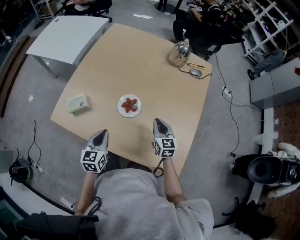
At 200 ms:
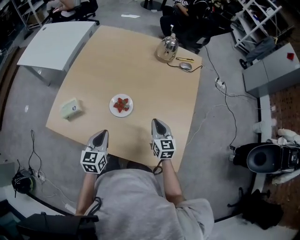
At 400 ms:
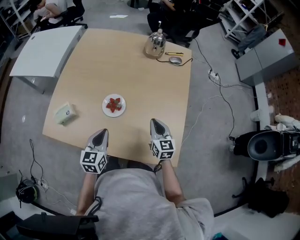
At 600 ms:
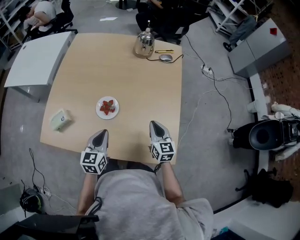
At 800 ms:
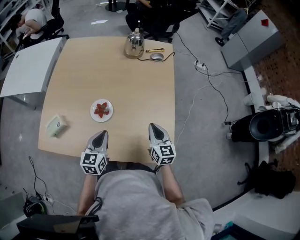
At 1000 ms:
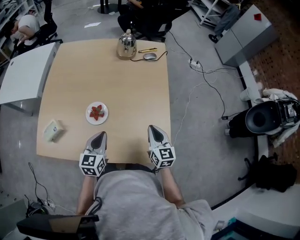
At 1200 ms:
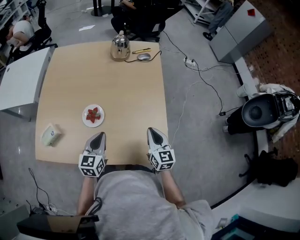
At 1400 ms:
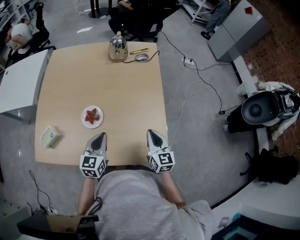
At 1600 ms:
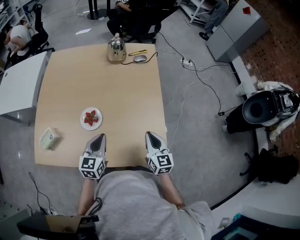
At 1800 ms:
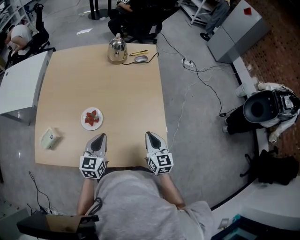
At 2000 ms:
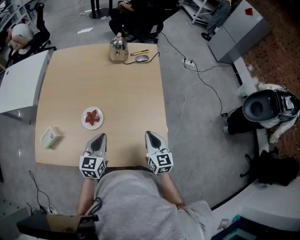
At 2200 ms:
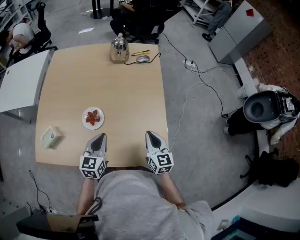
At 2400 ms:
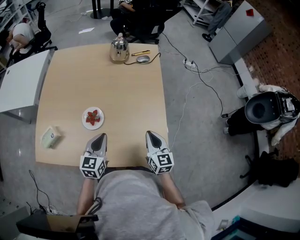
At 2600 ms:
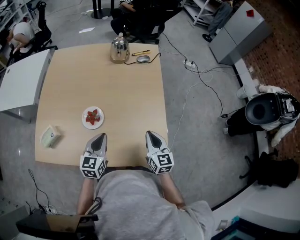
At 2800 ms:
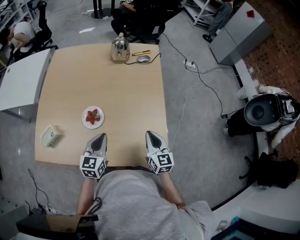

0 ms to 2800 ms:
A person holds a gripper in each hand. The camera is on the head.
0 ms to 1400 ms: The right gripper moves to the right and backward, some 20 cm, and rotates approximately 20 degrees. Meanwhile the left gripper goes roughly 15 cm to the right, and rotates some 30 degrees.
1400 ms to 2800 ms: Neither gripper changes place.

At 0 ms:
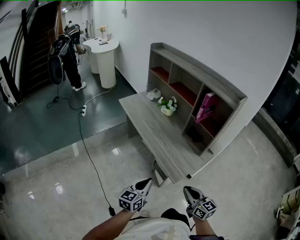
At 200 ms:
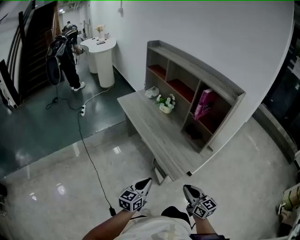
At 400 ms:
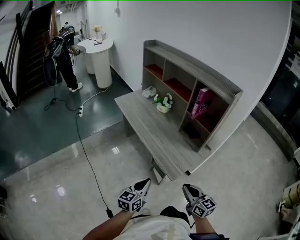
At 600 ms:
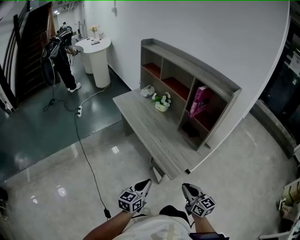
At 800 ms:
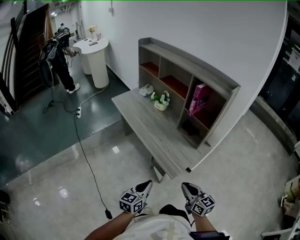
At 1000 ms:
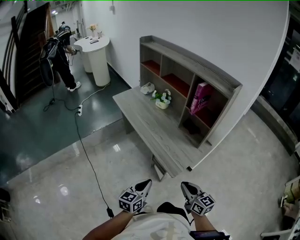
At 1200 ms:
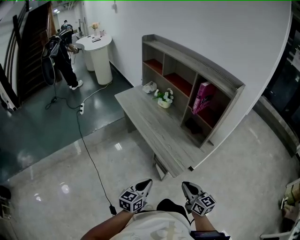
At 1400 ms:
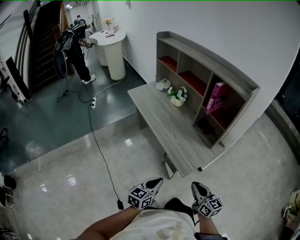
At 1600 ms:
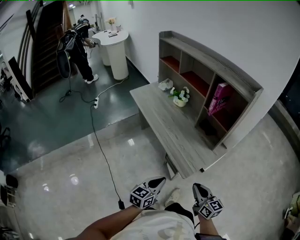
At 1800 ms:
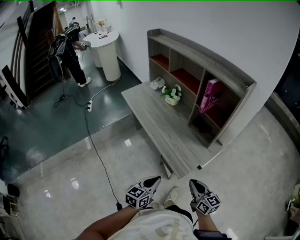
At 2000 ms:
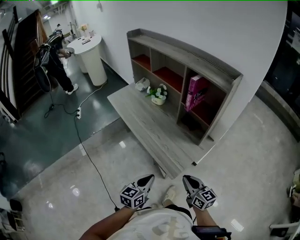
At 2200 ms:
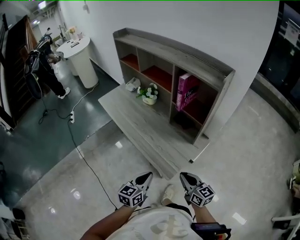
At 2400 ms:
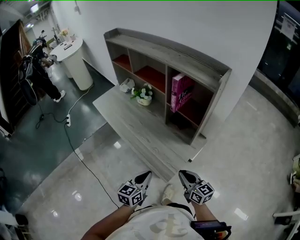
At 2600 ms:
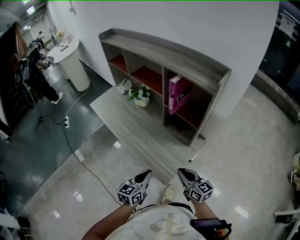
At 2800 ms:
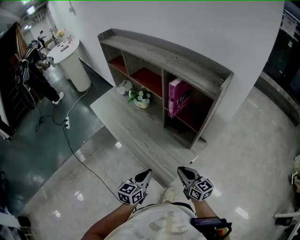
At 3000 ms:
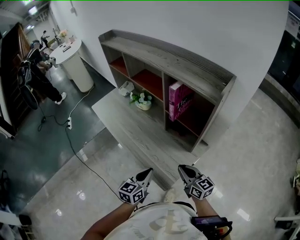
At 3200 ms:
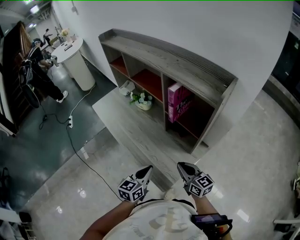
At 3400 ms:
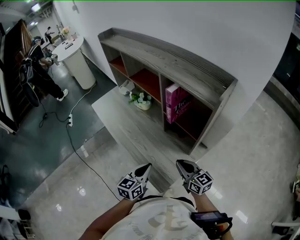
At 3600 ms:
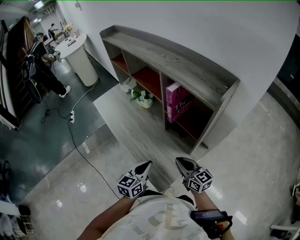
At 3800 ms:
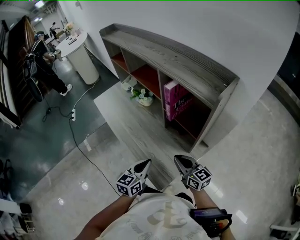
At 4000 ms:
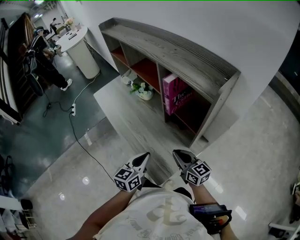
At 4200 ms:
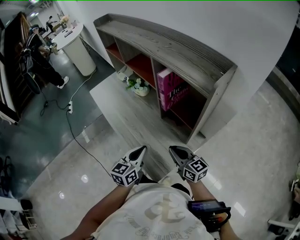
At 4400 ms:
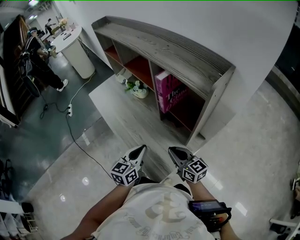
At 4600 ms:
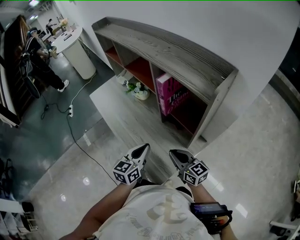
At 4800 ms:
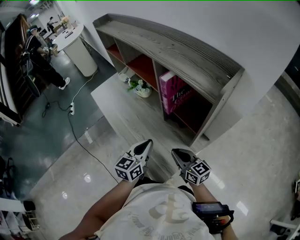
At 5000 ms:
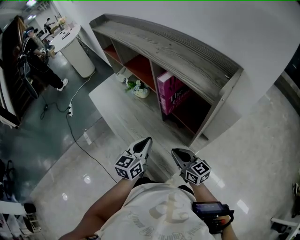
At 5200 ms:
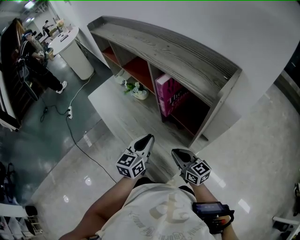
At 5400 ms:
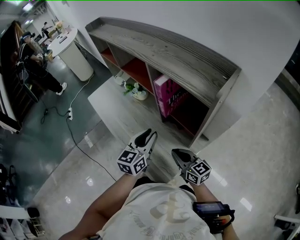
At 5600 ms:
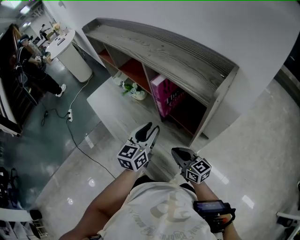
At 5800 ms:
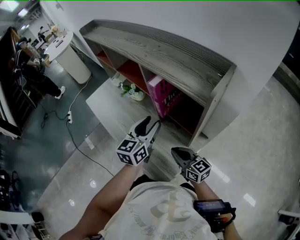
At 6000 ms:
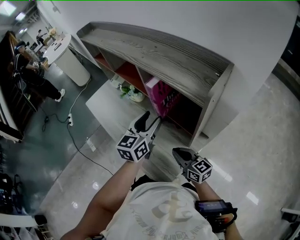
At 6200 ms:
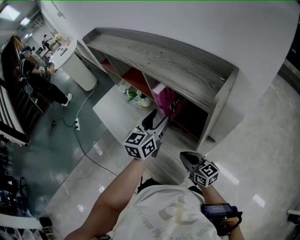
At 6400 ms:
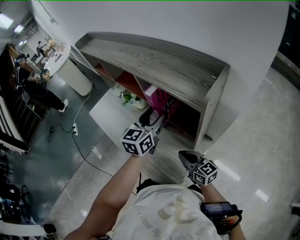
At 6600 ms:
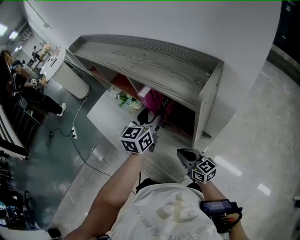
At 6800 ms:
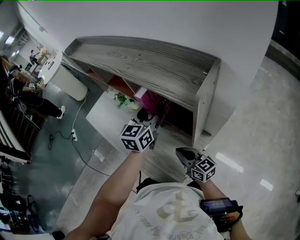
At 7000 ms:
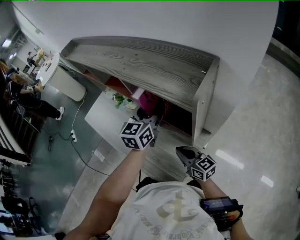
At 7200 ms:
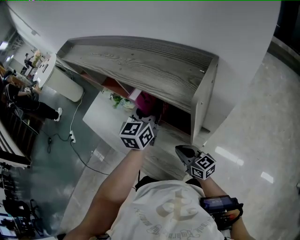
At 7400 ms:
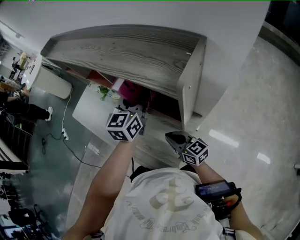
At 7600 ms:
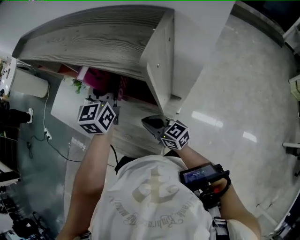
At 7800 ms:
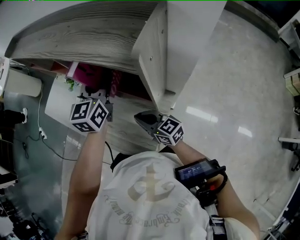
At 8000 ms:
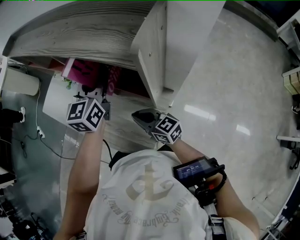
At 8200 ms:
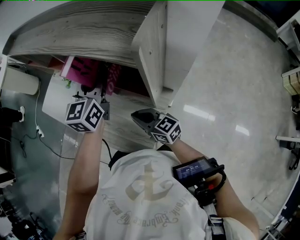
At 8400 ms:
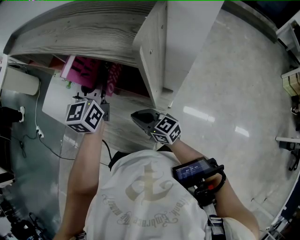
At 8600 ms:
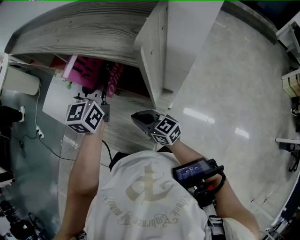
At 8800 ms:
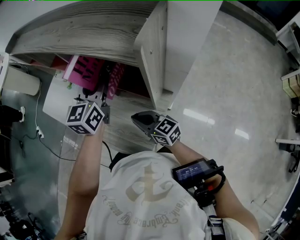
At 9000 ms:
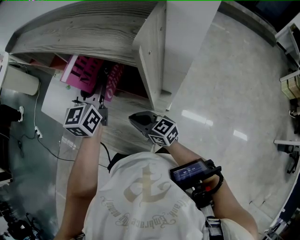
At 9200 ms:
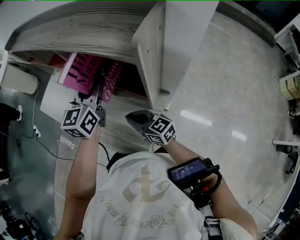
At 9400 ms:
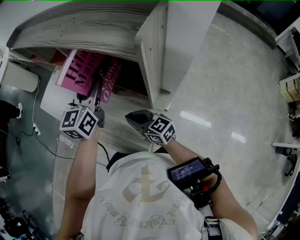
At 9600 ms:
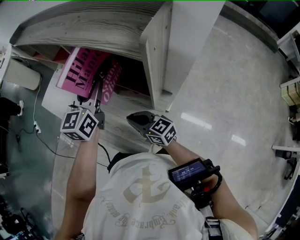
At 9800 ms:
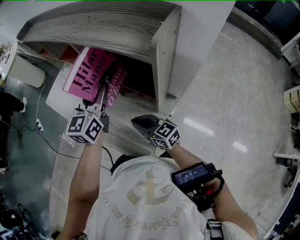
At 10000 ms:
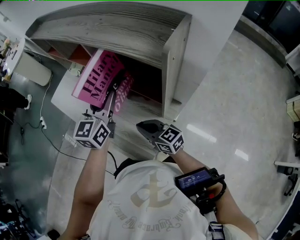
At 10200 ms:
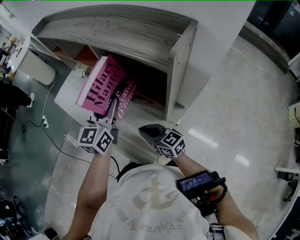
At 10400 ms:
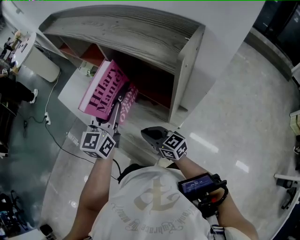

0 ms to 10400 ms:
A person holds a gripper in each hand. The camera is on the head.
0 ms to 1400 ms: The left gripper moves roughly 5 cm.
1400 ms to 3000 ms: The right gripper goes some 25 cm forward. Meanwhile the left gripper is displaced forward and to the right by about 25 cm.
3000 ms to 4400 ms: The grippers both shift forward by approximately 5 cm.
4400 ms to 6000 ms: The left gripper is displaced forward, upward and to the right by roughly 20 cm, and opens its fingers.
6000 ms to 7400 ms: The left gripper goes some 10 cm forward and to the right.
7400 ms to 9000 ms: The grippers make only small movements.
9000 ms to 10400 ms: The left gripper moves to the left and backward, some 10 cm.

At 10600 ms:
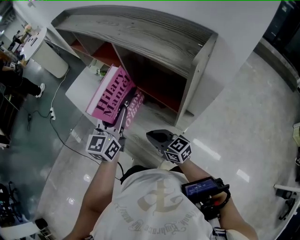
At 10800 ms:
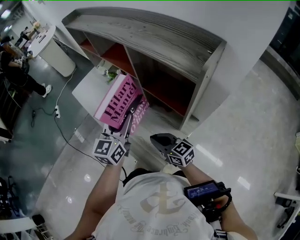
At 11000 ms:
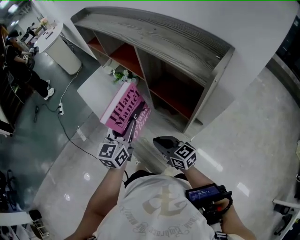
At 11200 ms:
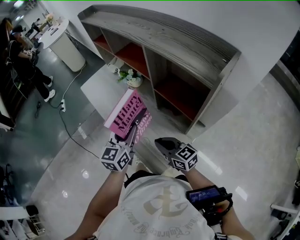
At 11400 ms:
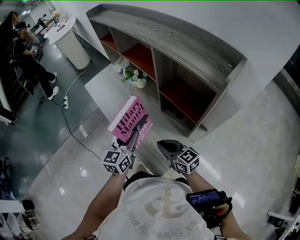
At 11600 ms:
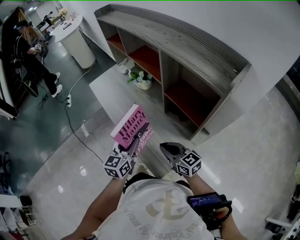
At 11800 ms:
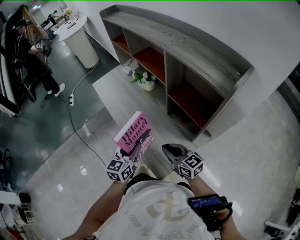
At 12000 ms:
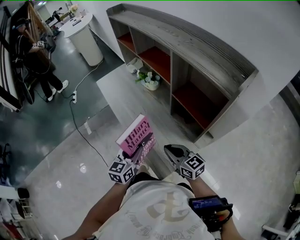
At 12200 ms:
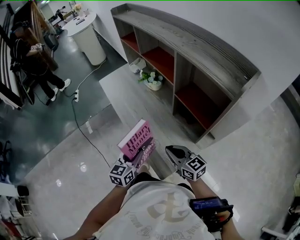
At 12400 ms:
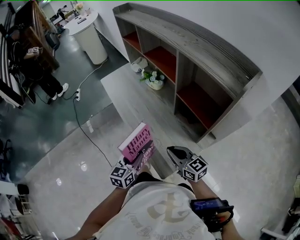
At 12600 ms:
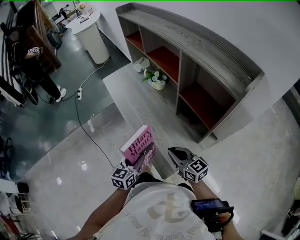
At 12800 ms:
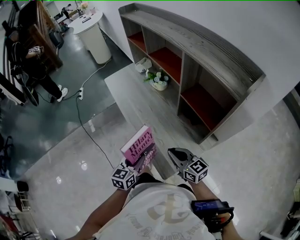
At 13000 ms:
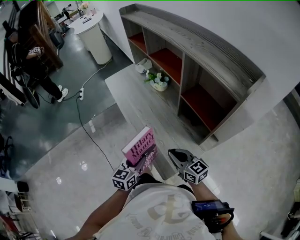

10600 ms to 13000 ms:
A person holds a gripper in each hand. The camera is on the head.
10600 ms to 11800 ms: The left gripper heads downward, to the left and backward, covering about 20 cm.
11800 ms to 13000 ms: The left gripper moves backward, approximately 5 cm.

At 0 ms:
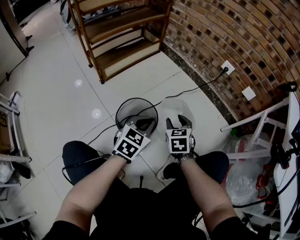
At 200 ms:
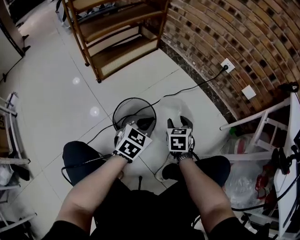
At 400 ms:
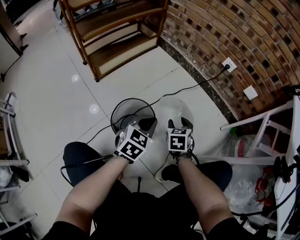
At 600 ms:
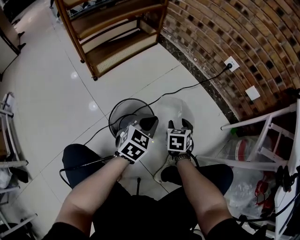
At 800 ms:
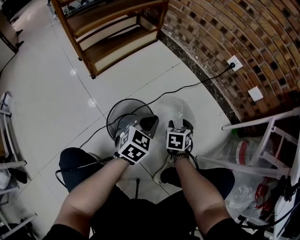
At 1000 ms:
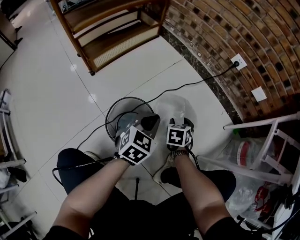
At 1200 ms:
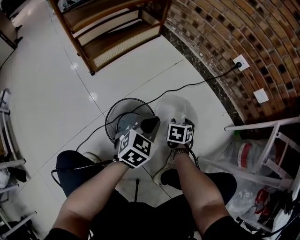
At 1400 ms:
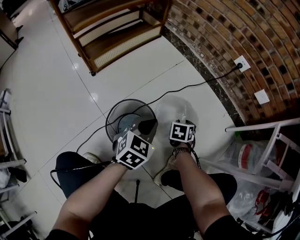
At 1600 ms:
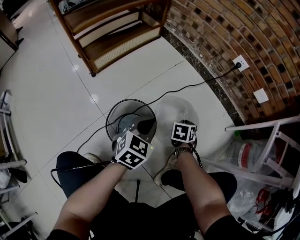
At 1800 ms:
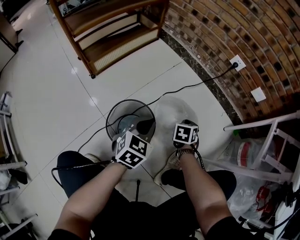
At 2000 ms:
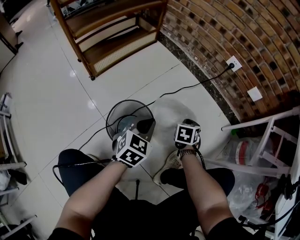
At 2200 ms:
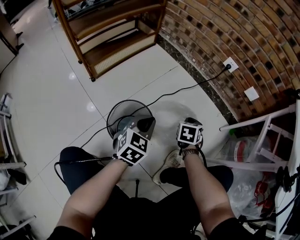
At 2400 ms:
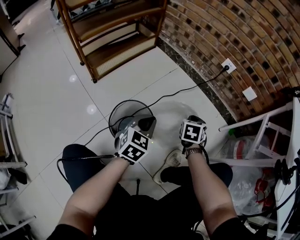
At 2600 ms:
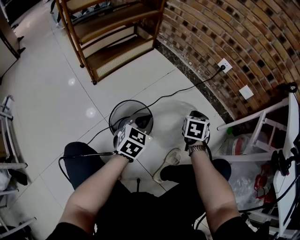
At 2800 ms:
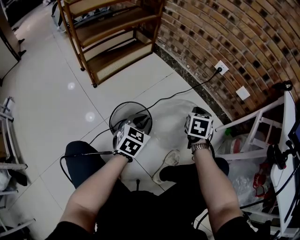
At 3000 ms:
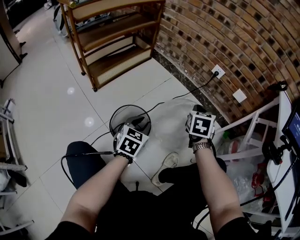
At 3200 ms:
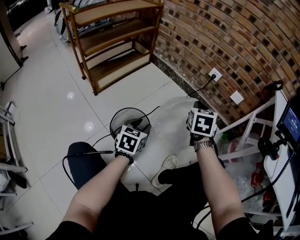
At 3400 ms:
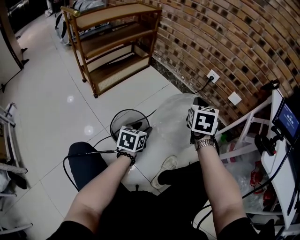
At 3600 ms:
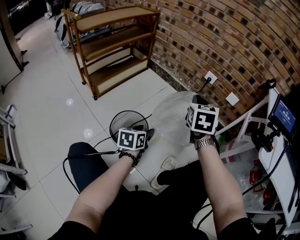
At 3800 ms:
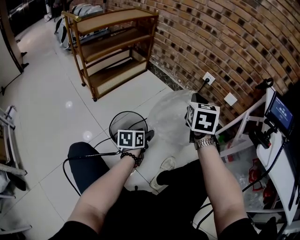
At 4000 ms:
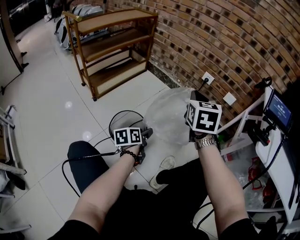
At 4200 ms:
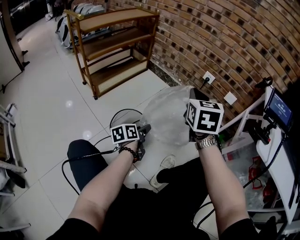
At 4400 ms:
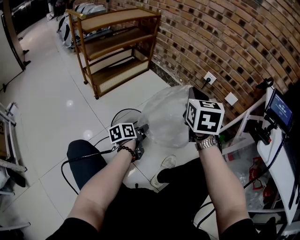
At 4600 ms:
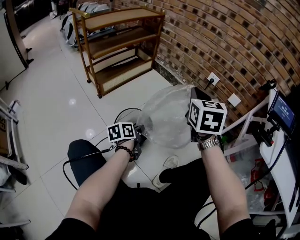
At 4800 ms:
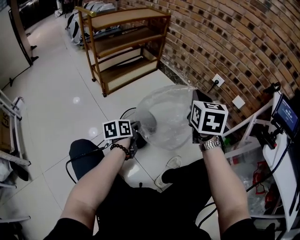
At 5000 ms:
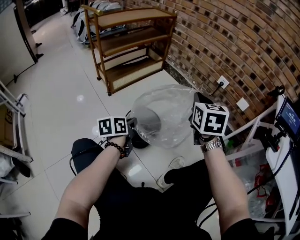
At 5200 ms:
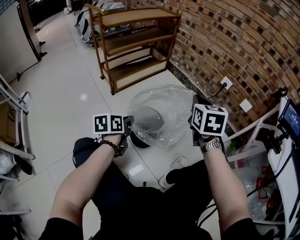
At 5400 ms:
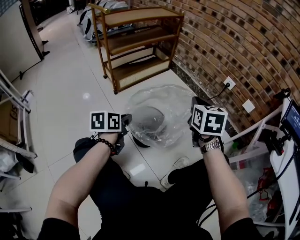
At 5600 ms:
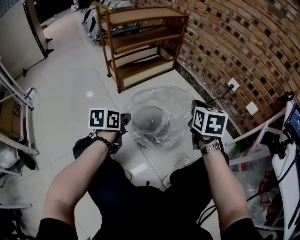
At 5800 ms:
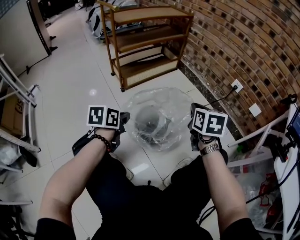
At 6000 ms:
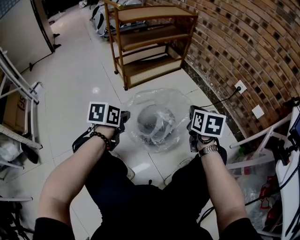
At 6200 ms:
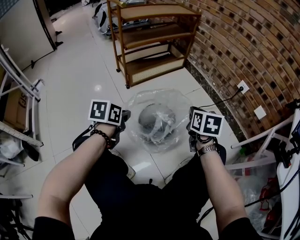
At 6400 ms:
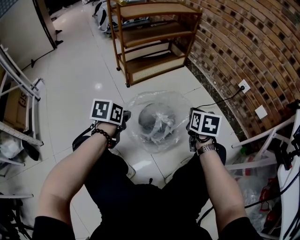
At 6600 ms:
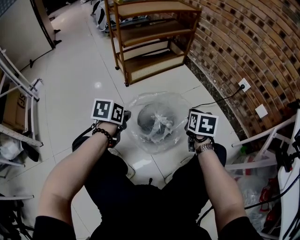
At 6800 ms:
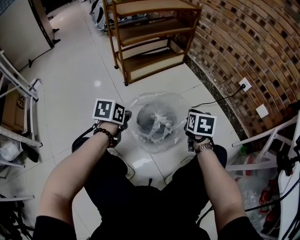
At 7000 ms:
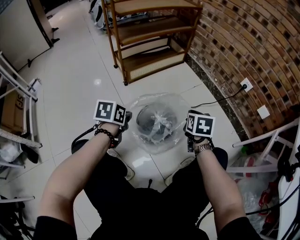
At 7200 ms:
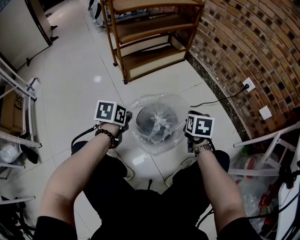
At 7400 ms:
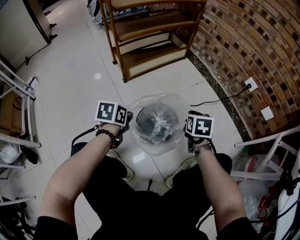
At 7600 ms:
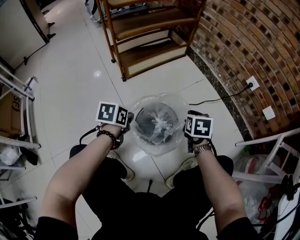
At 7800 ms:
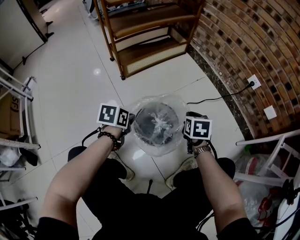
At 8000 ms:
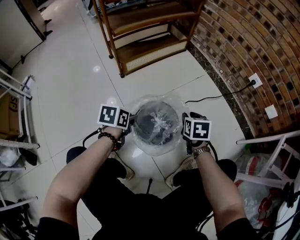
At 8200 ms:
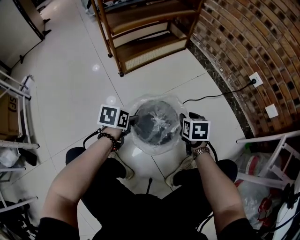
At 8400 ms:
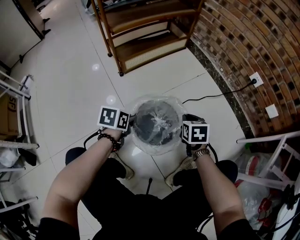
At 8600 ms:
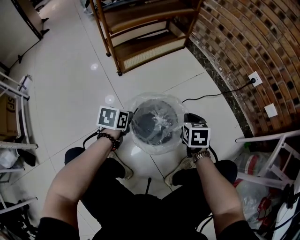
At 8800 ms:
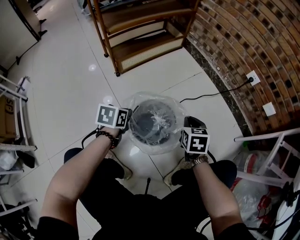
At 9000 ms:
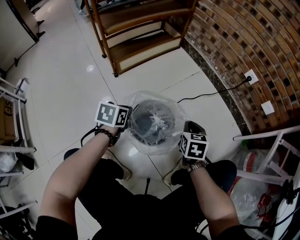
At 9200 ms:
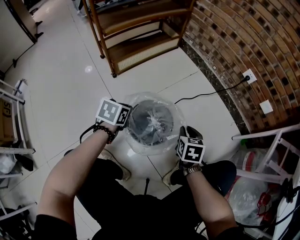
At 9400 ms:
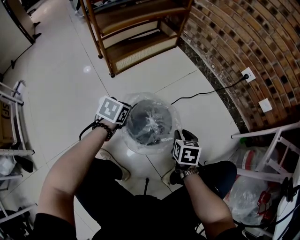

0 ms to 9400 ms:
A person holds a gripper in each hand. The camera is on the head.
0 ms to 1600 ms: The left gripper shifts about 10 cm forward and downward. Meanwhile the right gripper moves downward and forward, roughly 20 cm, turns by approximately 30 degrees, and closes its fingers.
1600 ms to 3200 ms: The right gripper heads upward, covering some 30 cm, and turns by about 30 degrees, while the left gripper shifts by approximately 5 cm, and opens.
3200 ms to 4800 ms: The right gripper goes about 15 cm upward, backward and to the left. Meanwhile the left gripper moves to the left, approximately 5 cm, rolls counterclockwise, seen from behind, by some 40 degrees, and closes up.
4800 ms to 6200 ms: The left gripper is displaced to the left, upward and backward by roughly 15 cm, and turns by approximately 20 degrees. Meanwhile the right gripper moves downward and to the left, approximately 15 cm, and changes its angle by roughly 20 degrees.
6200 ms to 7800 ms: The grippers both shift downward and forward by about 15 cm.
7800 ms to 9400 ms: The right gripper moves backward, roughly 10 cm. The left gripper moves some 5 cm, rotates approximately 20 degrees, and opens and closes again.
